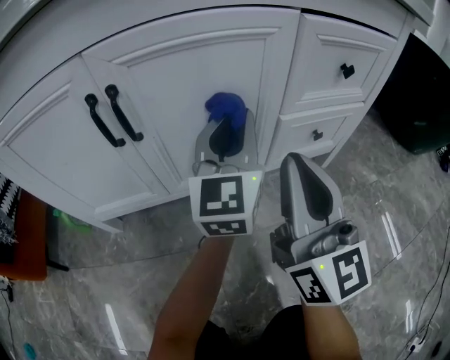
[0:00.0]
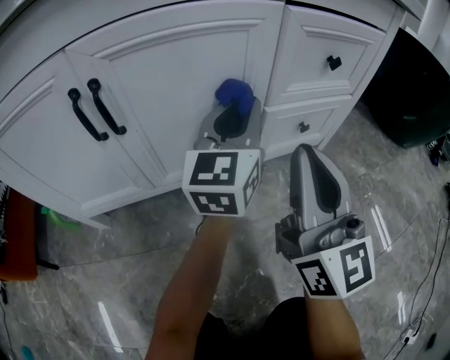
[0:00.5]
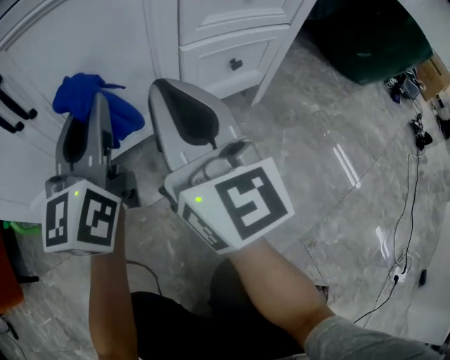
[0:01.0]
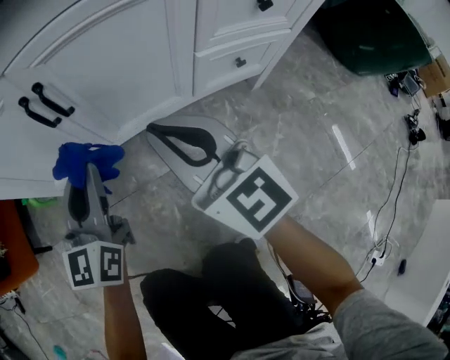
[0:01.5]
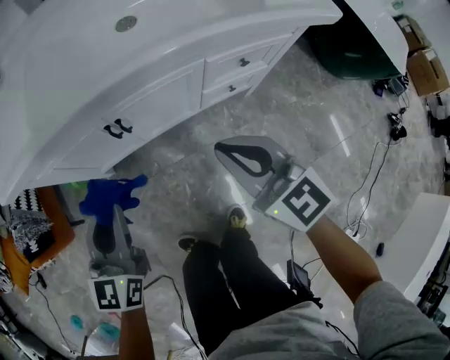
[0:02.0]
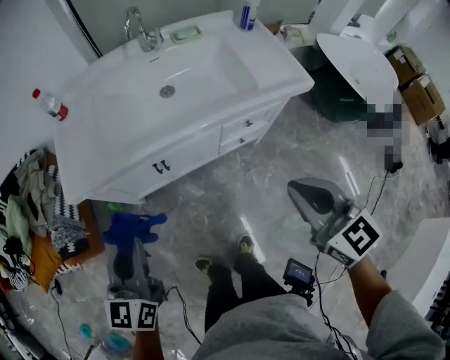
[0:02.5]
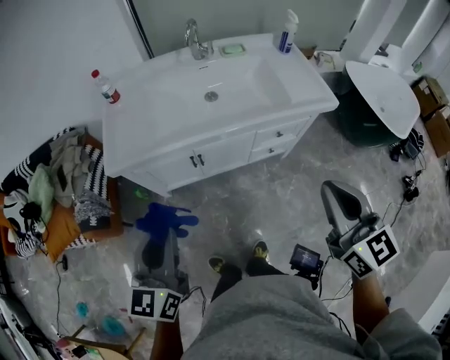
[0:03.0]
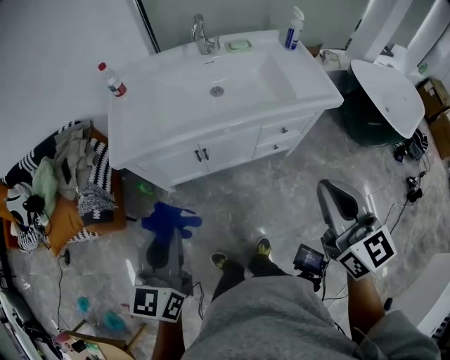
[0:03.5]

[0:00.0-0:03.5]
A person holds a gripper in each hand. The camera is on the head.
0:00.0 to 0:02.0: The right gripper is displaced upward by approximately 25 cm, and angles its fingers downward, by approximately 30 degrees; the left gripper travels upward, backward and to the left by some 40 cm, and swivels about 20 degrees.
0:02.0 to 0:03.5: The two grippers go roughly 30 cm upward and backward.

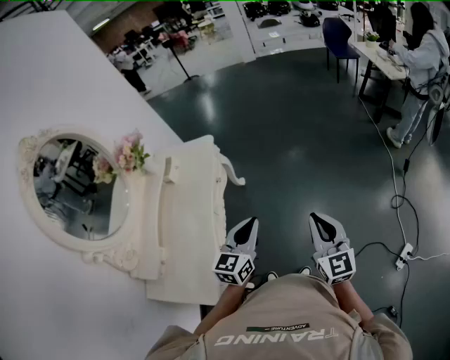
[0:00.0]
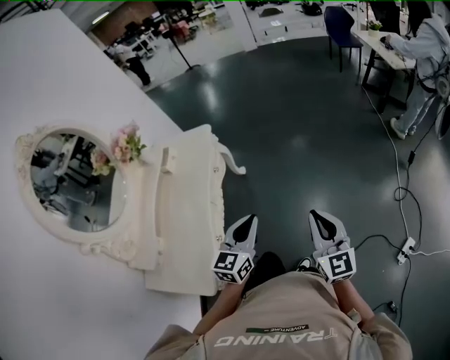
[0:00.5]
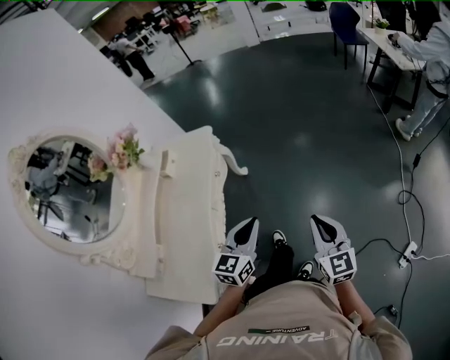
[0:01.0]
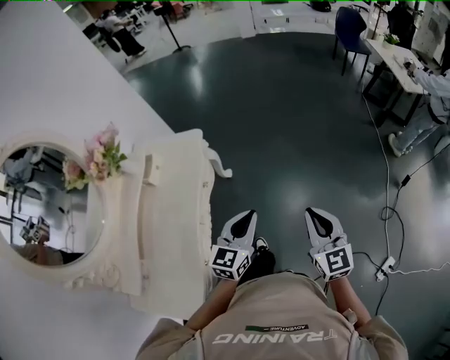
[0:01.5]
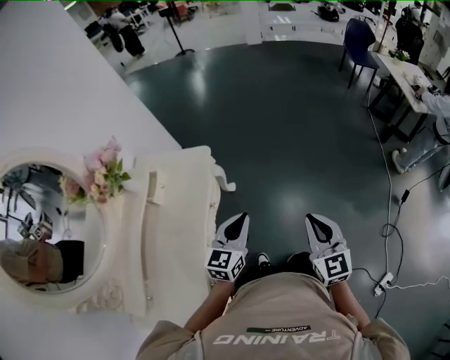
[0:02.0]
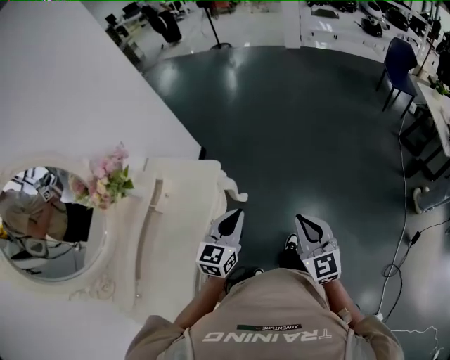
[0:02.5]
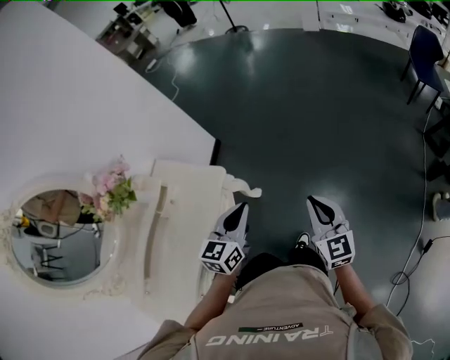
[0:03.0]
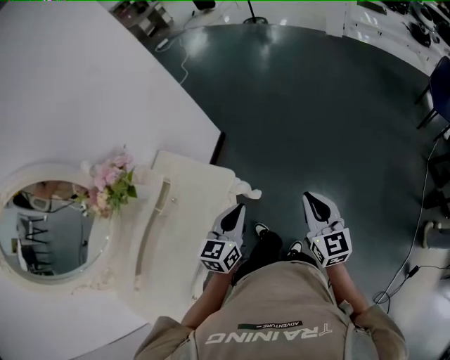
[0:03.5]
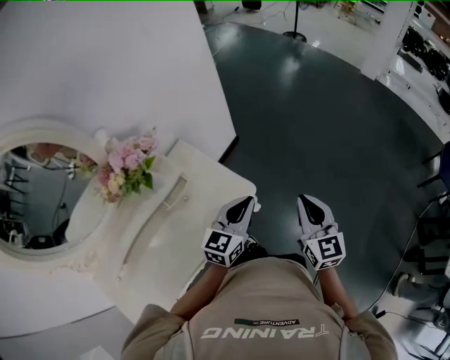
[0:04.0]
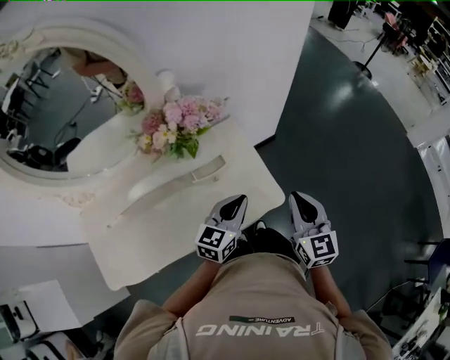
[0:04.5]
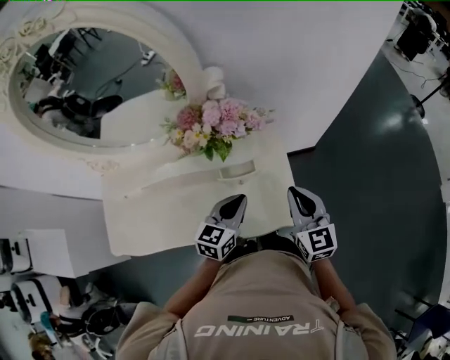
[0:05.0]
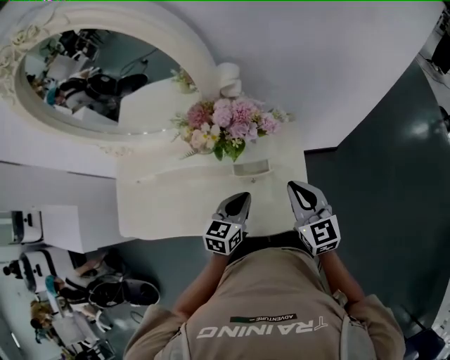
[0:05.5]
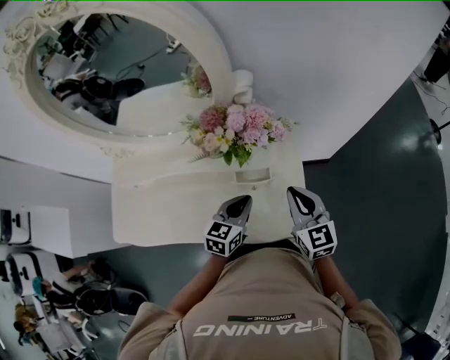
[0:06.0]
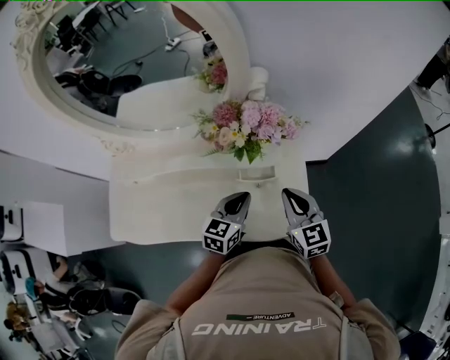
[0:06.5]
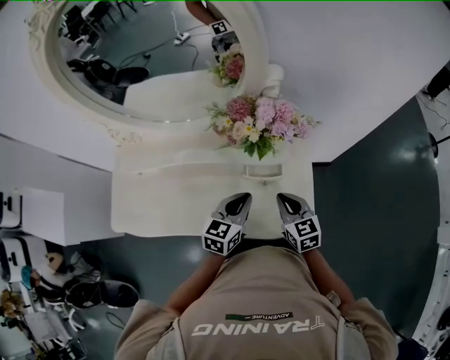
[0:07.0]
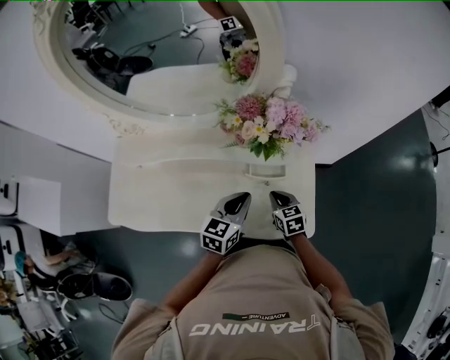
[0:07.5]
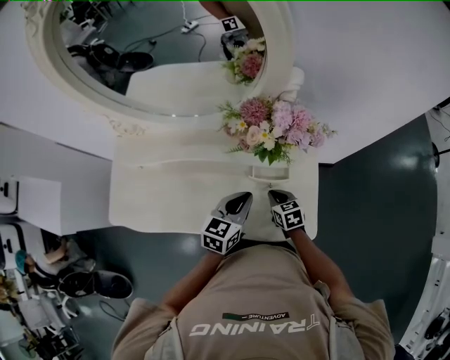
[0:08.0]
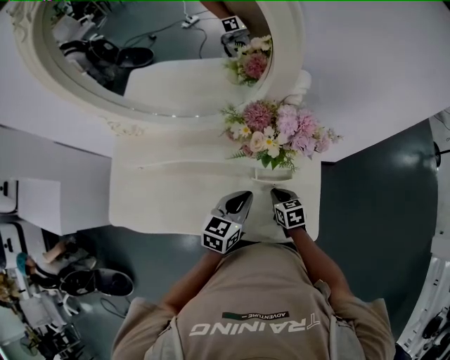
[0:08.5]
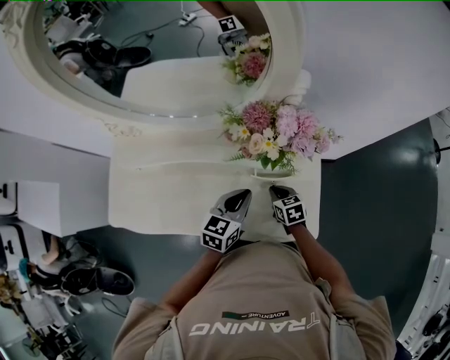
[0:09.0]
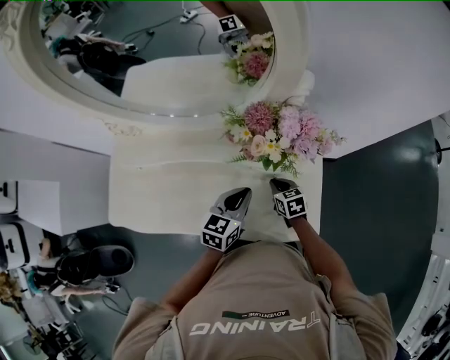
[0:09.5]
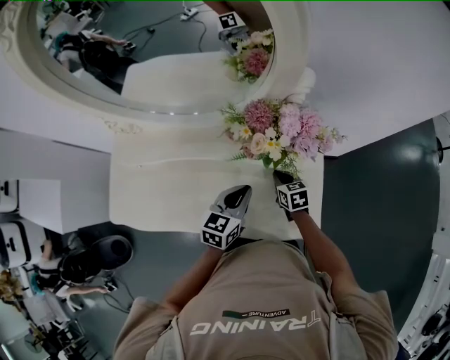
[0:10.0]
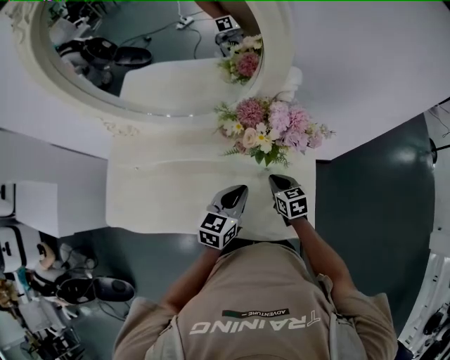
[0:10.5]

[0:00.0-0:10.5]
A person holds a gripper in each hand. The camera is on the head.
0:00.0 to 0:02.0: The grippers both shift forward by some 25 cm.
0:02.0 to 0:04.0: The right gripper changes place by roughly 40 cm, and rotates some 30 degrees. Meanwhile the left gripper shifts by about 35 cm, and changes its angle by some 30 degrees.
0:04.0 to 0:06.5: The right gripper ends up approximately 35 cm from where it was, and turns by some 60 degrees. The left gripper ends up roughly 25 cm from where it was, and rotates roughly 50 degrees.
0:06.5 to 0:08.5: The left gripper shifts by roughly 5 cm. Meanwhile the right gripper moves downward, about 20 cm, and changes its angle by some 30 degrees.
0:08.5 to 0:10.5: The right gripper moves approximately 5 cm.

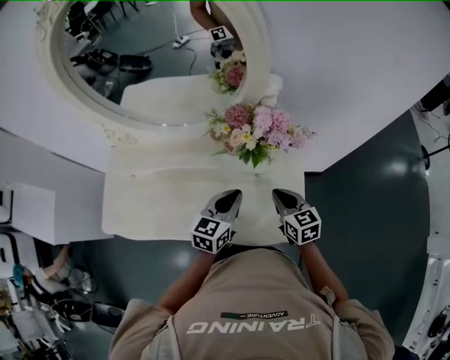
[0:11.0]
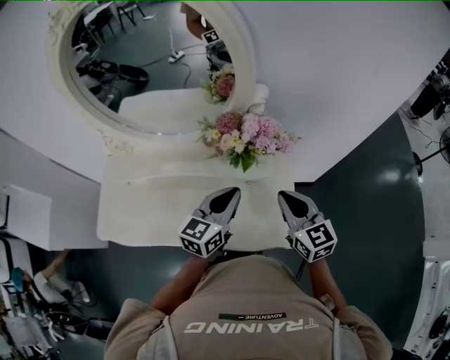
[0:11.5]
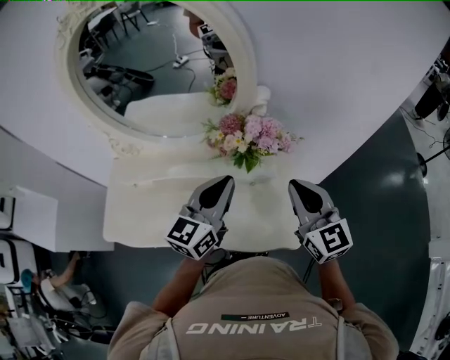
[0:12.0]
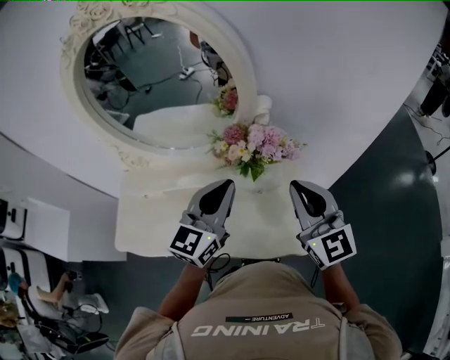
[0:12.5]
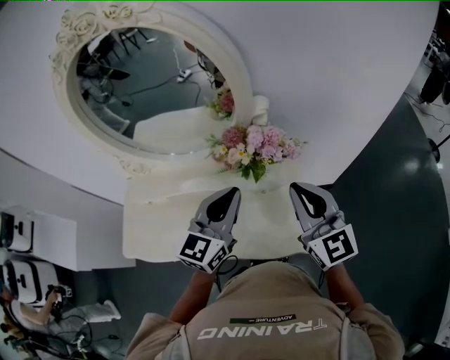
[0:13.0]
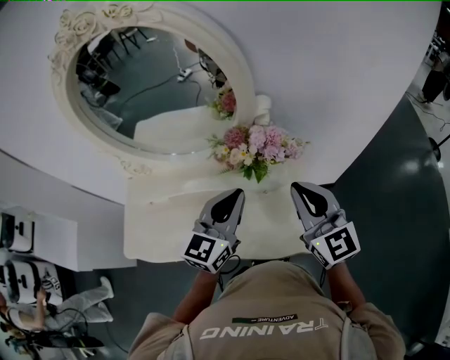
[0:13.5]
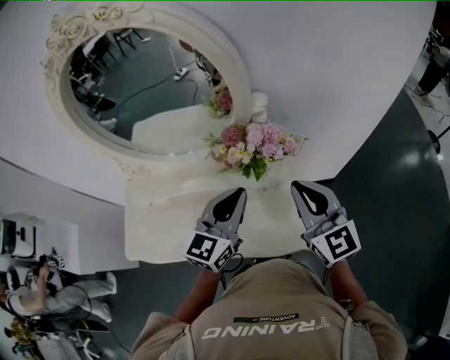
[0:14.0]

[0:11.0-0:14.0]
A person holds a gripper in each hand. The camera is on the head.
0:11.0 to 0:12.5: Both grippers travel together upward, some 25 cm. The right gripper changes its angle by approximately 40 degrees, while the left gripper rotates approximately 20 degrees.
0:12.5 to 0:14.0: There are only small adjustments of the grippers.

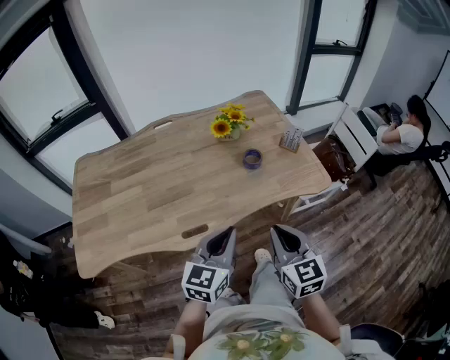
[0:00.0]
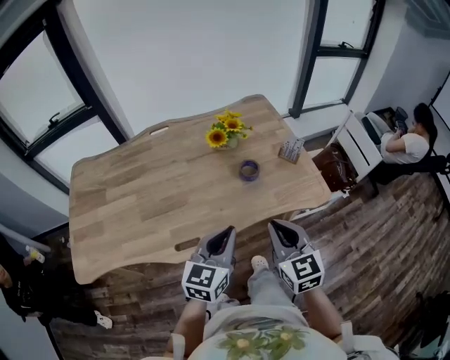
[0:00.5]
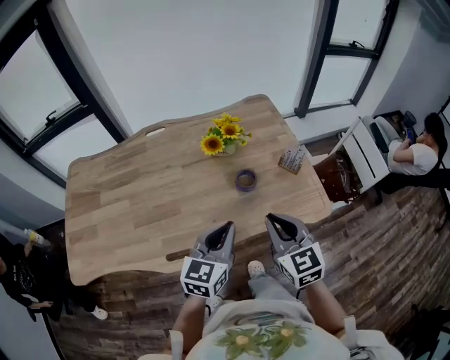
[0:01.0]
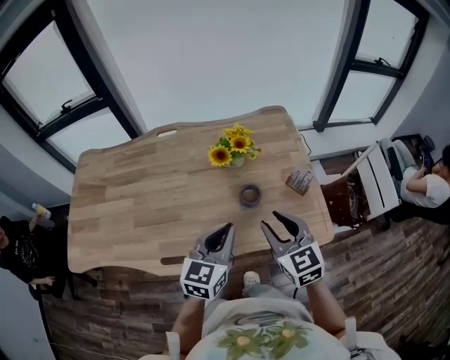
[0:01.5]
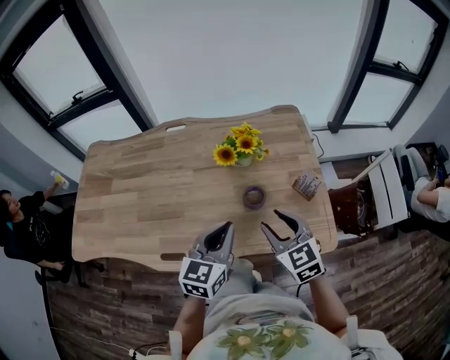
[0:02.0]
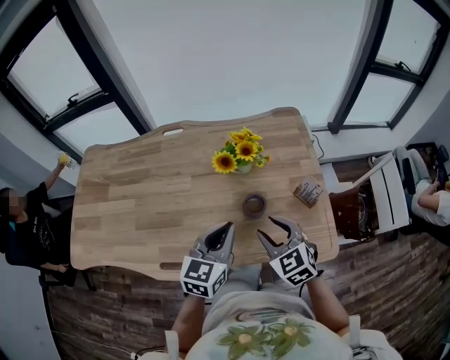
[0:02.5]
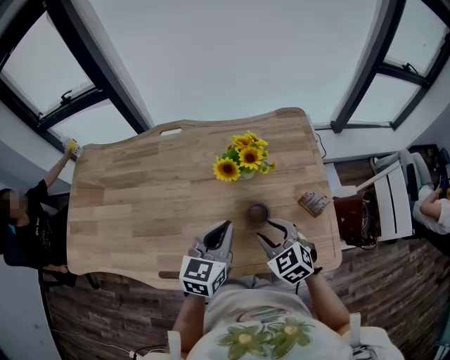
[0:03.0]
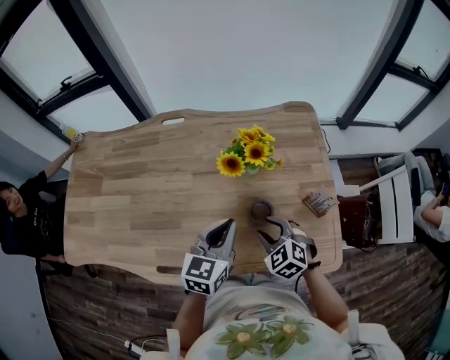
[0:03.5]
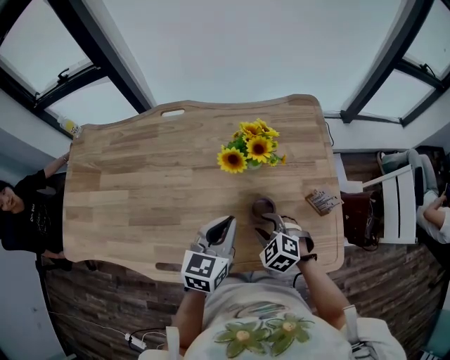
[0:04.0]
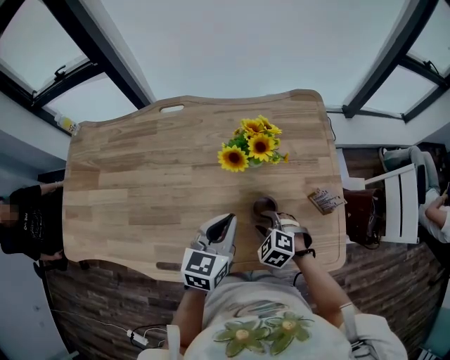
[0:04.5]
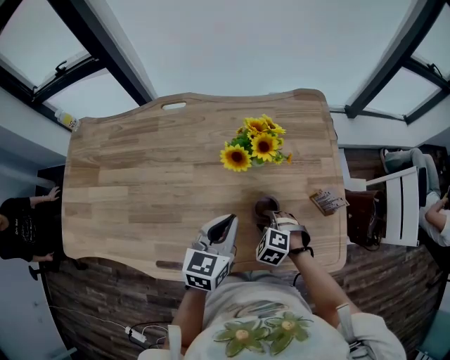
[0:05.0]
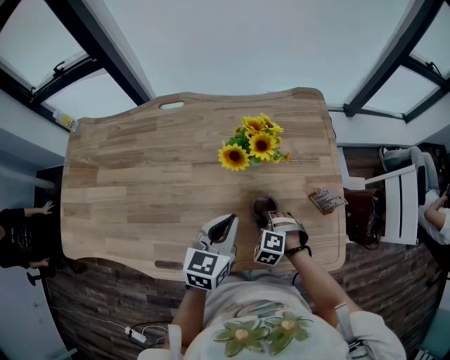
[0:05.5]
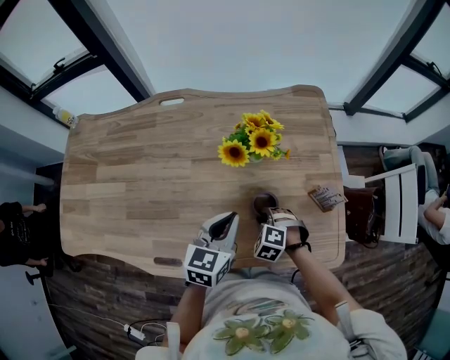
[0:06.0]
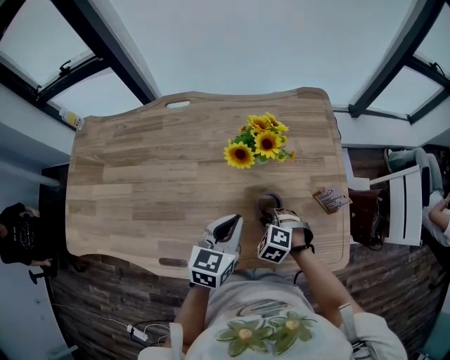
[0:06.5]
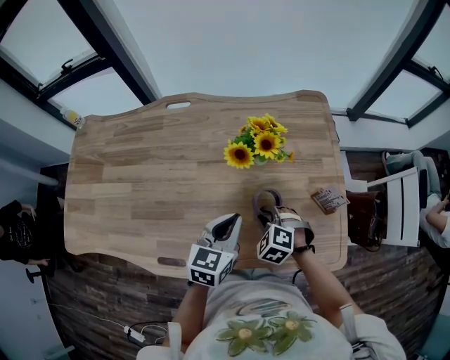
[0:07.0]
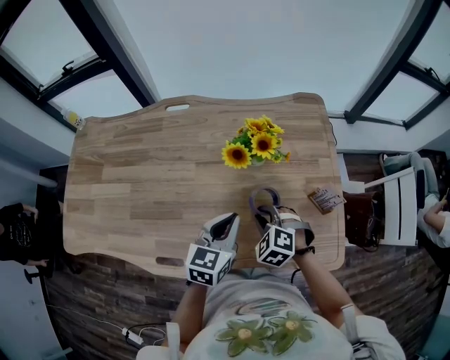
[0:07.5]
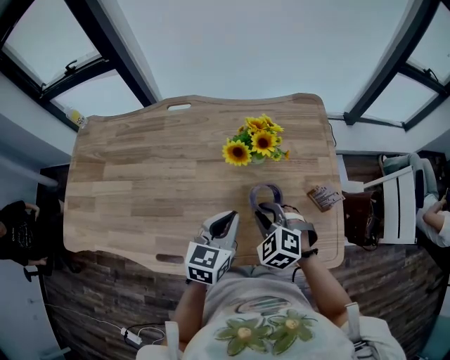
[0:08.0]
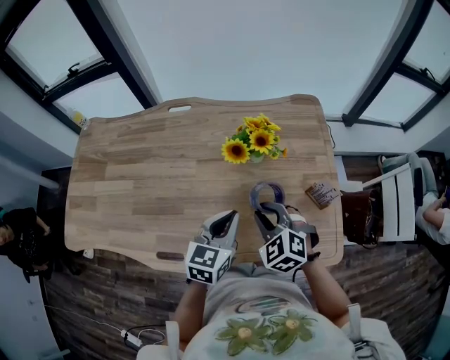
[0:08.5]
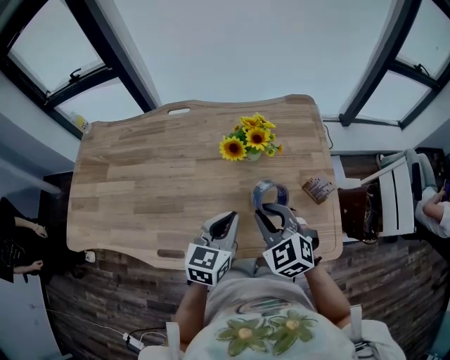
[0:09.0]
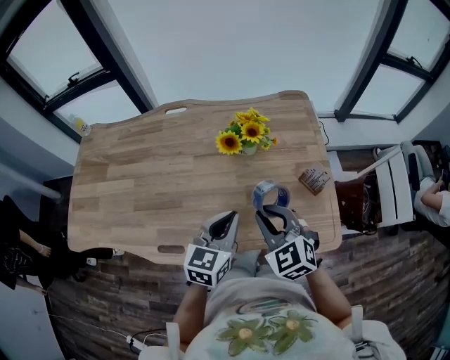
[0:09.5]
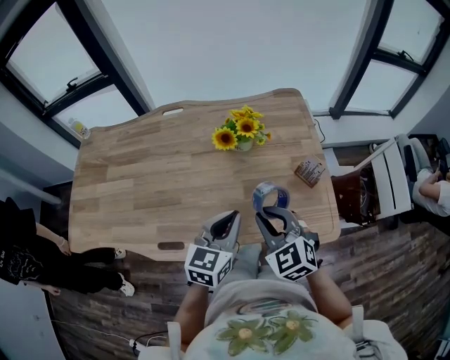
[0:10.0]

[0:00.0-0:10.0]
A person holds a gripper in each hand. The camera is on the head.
0:00.0 to 0:02.0: The left gripper goes about 25 cm forward and to the right; the right gripper heads forward, covering approximately 25 cm, changes its angle by roughly 30 degrees, and opens its fingers.
0:02.0 to 0:04.0: The right gripper moves downward and forward, approximately 20 cm, and angles its fingers downward, by some 30 degrees; the left gripper shifts roughly 15 cm forward and downward.
0:04.0 to 0:06.0: The right gripper heads downward, covering about 5 cm.
0:06.0 to 0:08.0: The right gripper moves upward, roughly 15 cm.
0:08.0 to 0:10.0: The left gripper heads backward, covering about 10 cm, while the right gripper goes some 15 cm backward and upward, and rotates about 30 degrees.
